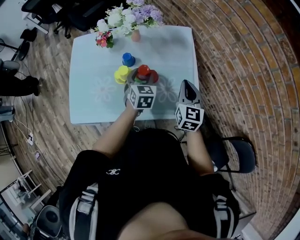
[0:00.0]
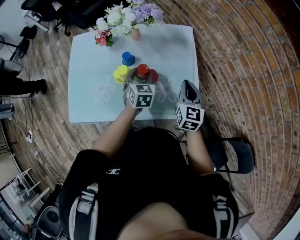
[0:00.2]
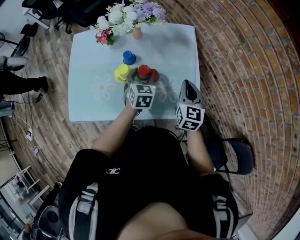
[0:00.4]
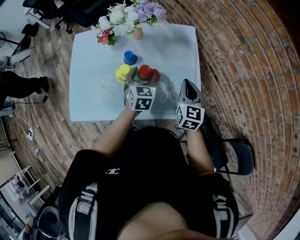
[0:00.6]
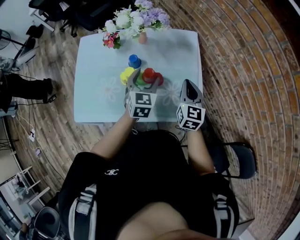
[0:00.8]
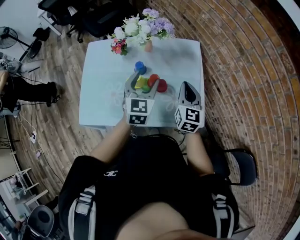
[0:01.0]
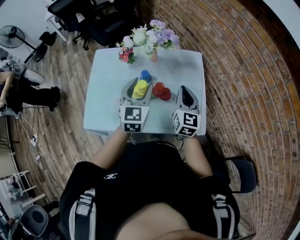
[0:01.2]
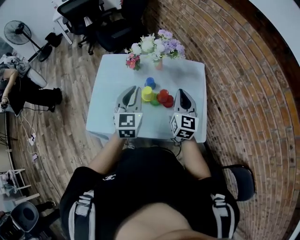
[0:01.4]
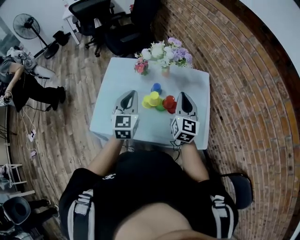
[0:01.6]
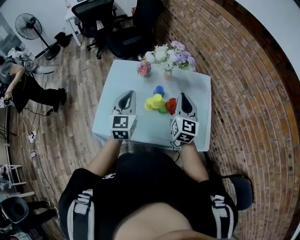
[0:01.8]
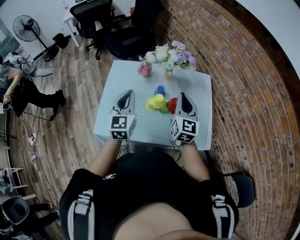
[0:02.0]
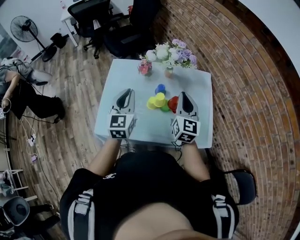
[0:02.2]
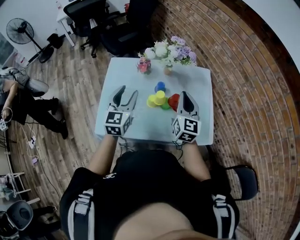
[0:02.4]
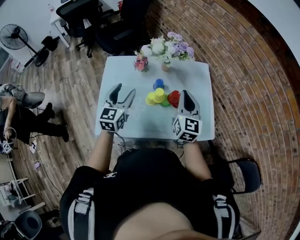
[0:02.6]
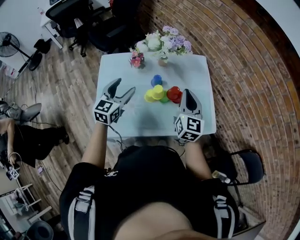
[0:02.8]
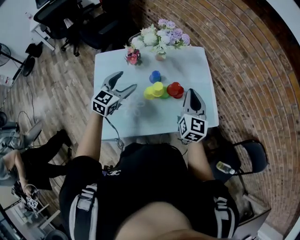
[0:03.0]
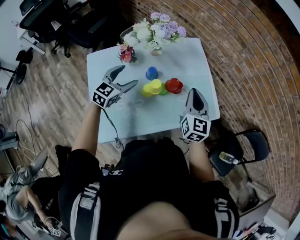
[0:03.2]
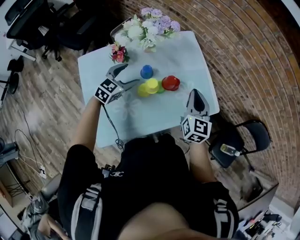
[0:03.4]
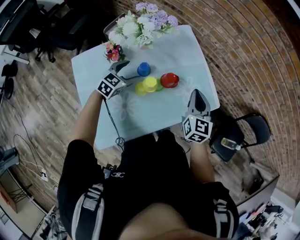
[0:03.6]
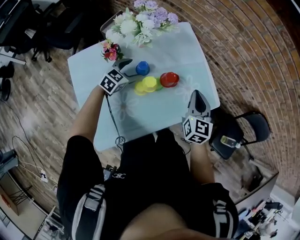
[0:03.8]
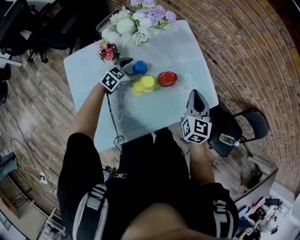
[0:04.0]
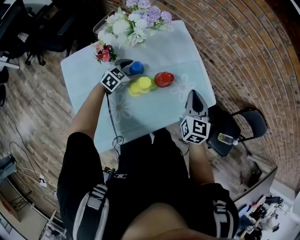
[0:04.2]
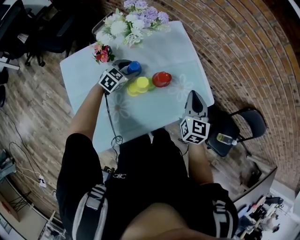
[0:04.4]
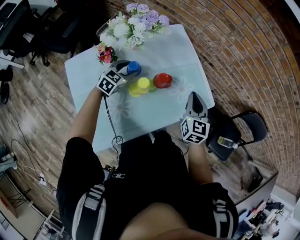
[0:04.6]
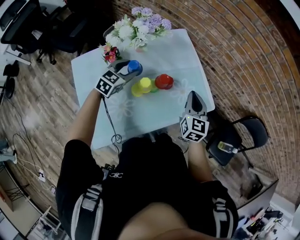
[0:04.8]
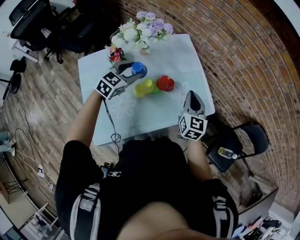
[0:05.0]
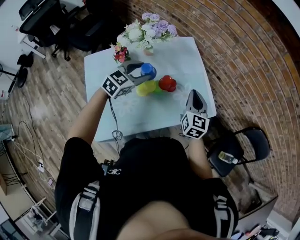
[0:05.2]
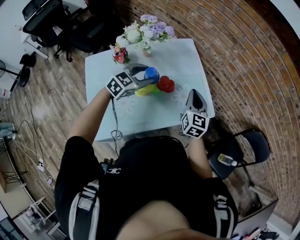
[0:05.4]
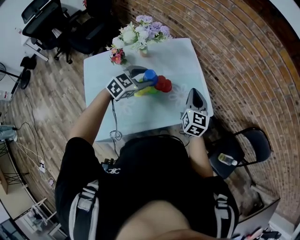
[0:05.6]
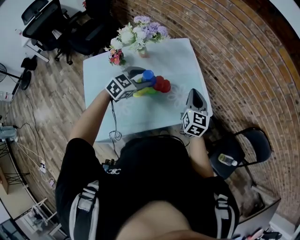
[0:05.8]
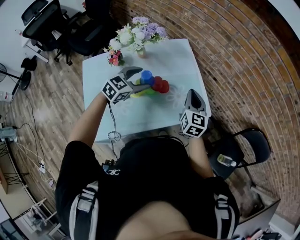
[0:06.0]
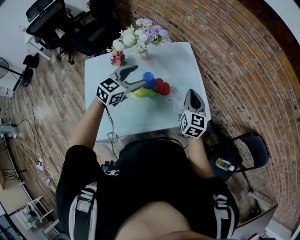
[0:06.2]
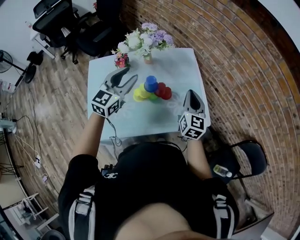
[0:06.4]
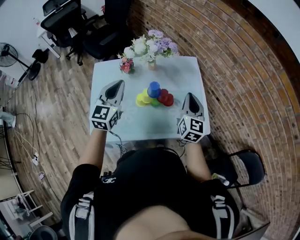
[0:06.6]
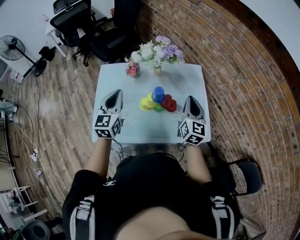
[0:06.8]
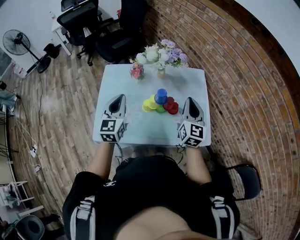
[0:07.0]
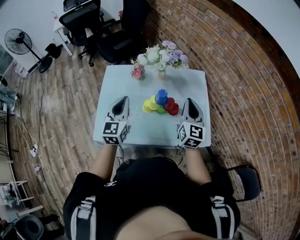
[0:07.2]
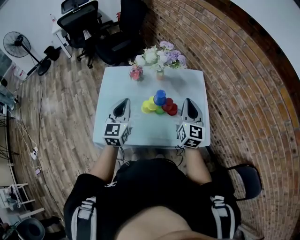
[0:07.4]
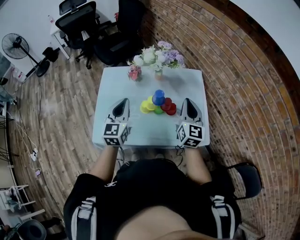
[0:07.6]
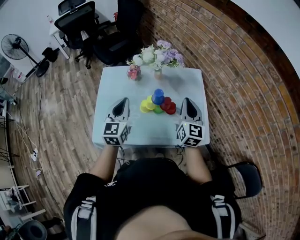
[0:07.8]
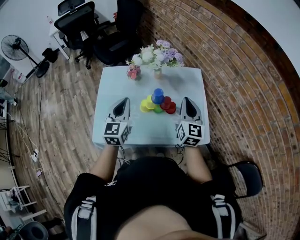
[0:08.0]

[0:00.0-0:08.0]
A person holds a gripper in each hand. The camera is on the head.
0:00.0 to 0:01.6: The left gripper heads upward, to the left and backward, covering roughly 25 cm, swivels roughly 30 degrees, and closes, while the right gripper travels to the left and upward by roughly 20 cm.
0:01.6 to 0:03.2: The right gripper shifts by about 5 cm, and turns by approximately 20 degrees. Meanwhile the left gripper shifts by roughly 15 cm, changes its angle by approximately 50 degrees, and opens its fingers.
0:03.2 to 0:04.8: The right gripper is displaced to the right by roughly 5 cm; the left gripper travels forward by roughly 10 cm, and moves roughly 15 cm downward and comes back.
0:04.8 to 0:06.4: The right gripper ends up about 5 cm from where it was, while the left gripper goes about 20 cm upward and backward, and changes its angle by about 30 degrees.
0:06.4 to 0:08.0: The right gripper travels to the left by approximately 5 cm. Meanwhile the left gripper heads backward and to the left, covering approximately 10 cm, turns by approximately 30 degrees, and closes up.

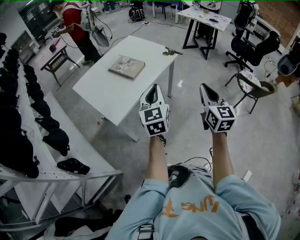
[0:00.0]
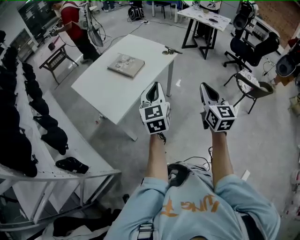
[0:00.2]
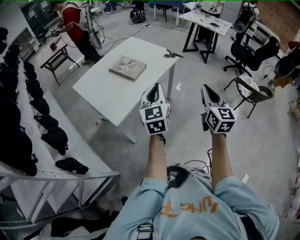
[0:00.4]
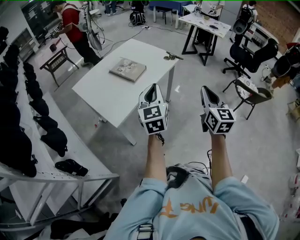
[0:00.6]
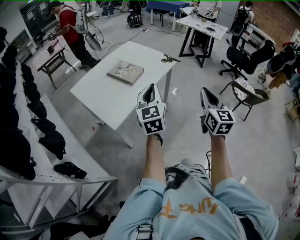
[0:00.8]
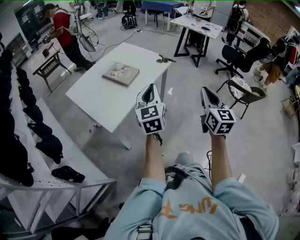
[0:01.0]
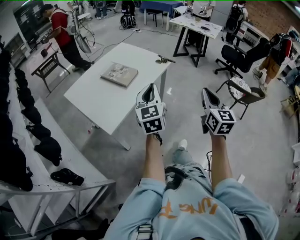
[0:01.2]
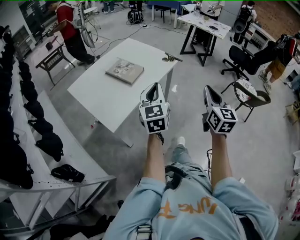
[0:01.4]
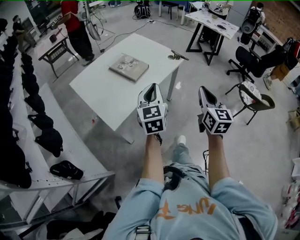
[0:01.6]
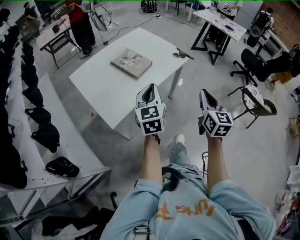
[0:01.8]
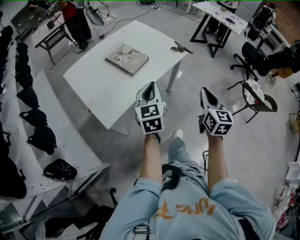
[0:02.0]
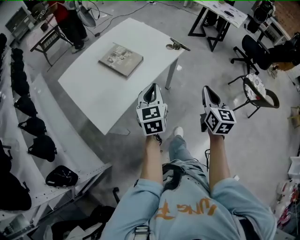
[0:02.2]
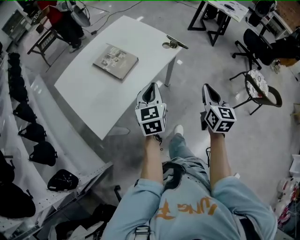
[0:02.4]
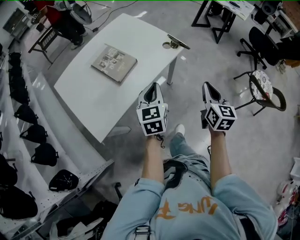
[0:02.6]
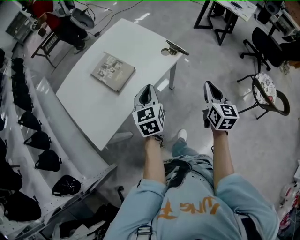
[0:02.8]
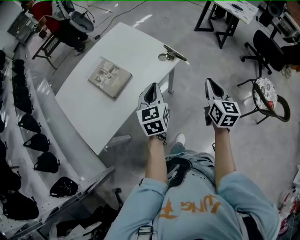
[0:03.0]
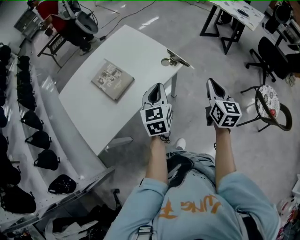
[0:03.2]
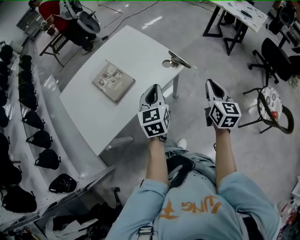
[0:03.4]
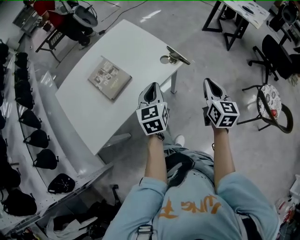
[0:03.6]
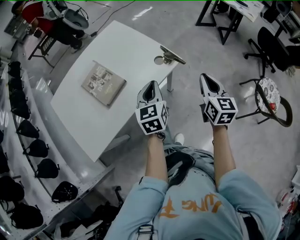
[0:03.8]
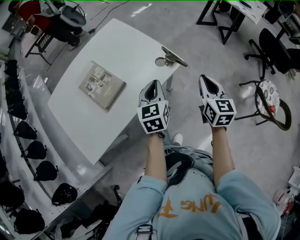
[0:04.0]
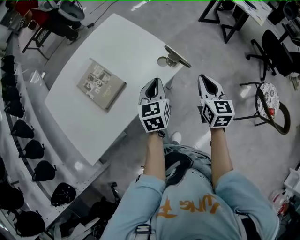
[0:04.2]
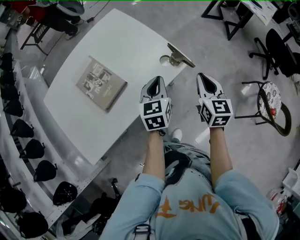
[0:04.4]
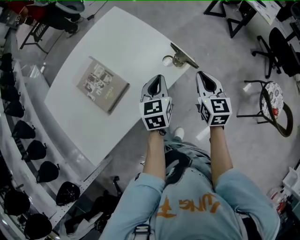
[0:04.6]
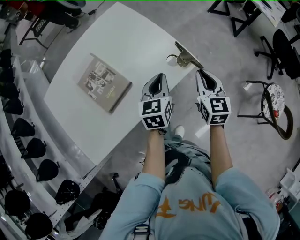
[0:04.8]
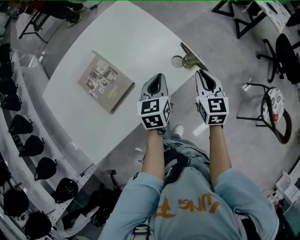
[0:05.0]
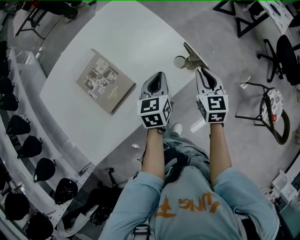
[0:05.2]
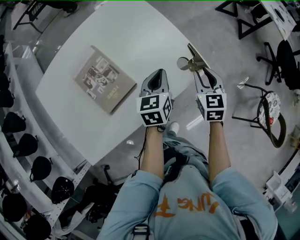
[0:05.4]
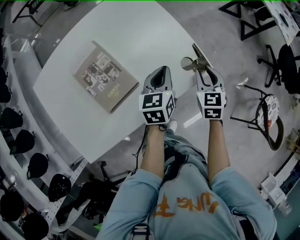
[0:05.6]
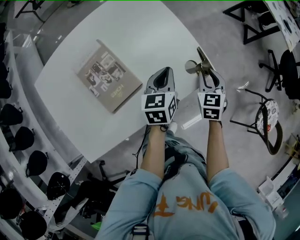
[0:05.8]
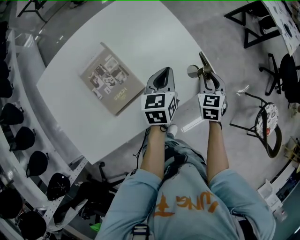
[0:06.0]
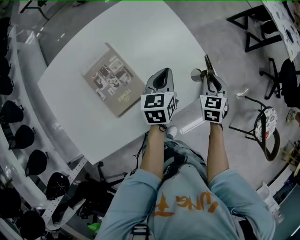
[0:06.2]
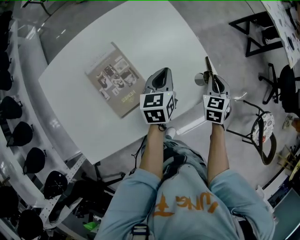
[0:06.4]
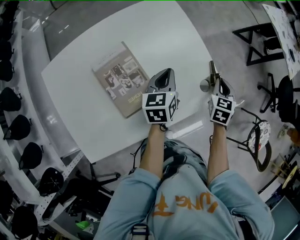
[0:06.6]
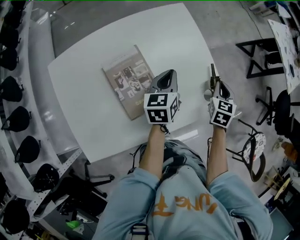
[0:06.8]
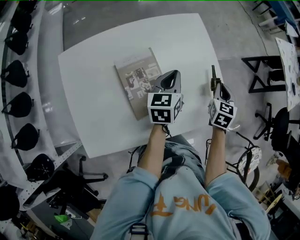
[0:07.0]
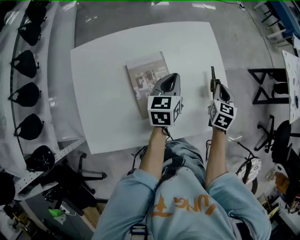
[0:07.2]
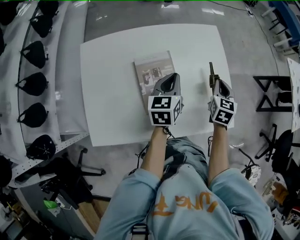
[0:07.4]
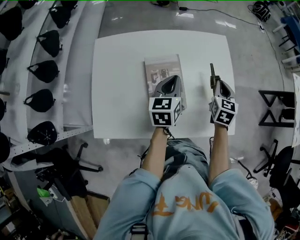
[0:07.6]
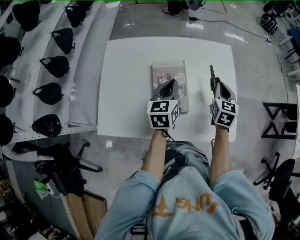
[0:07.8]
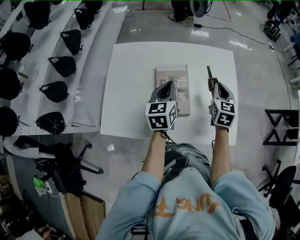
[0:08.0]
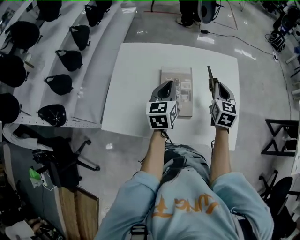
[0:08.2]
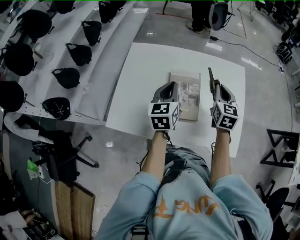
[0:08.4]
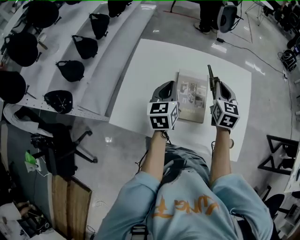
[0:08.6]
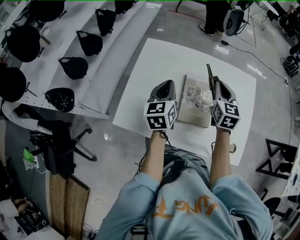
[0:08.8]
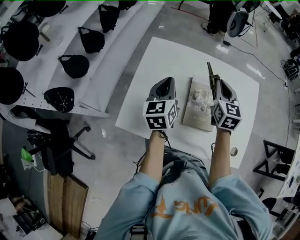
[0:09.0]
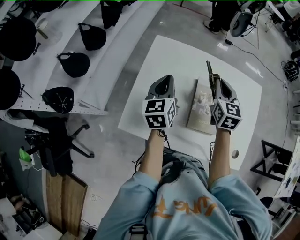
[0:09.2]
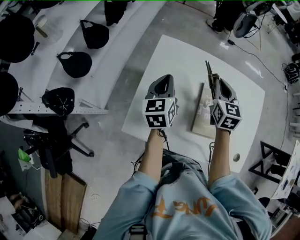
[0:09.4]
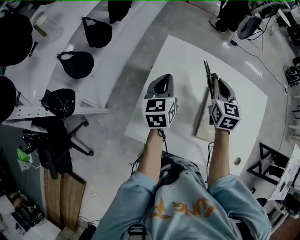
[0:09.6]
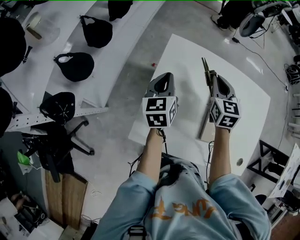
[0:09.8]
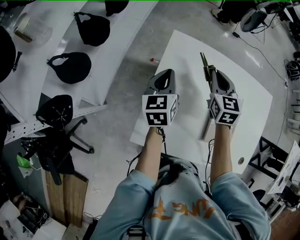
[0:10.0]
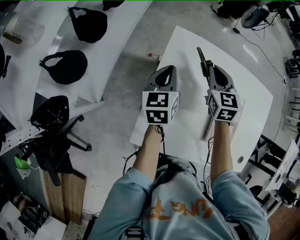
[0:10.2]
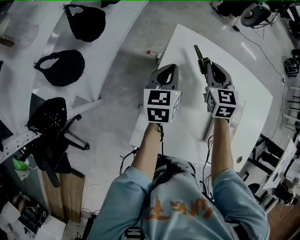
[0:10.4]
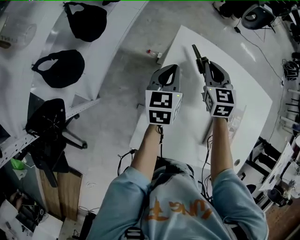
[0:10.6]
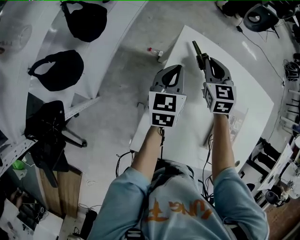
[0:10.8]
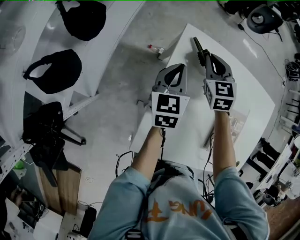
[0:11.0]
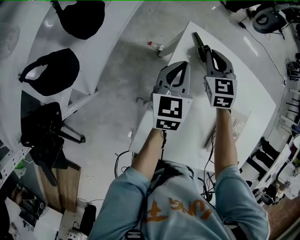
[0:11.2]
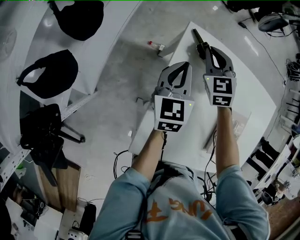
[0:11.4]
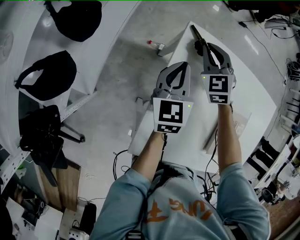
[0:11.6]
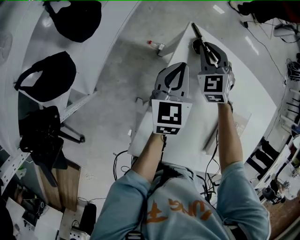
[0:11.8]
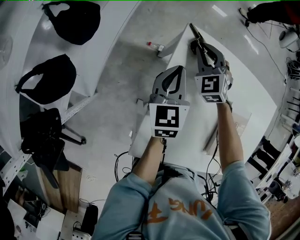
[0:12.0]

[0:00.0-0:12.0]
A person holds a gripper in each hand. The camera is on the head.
0:00.0 to 0:01.6: The two grippers go some 5 cm forward.
0:01.6 to 0:03.0: The right gripper travels forward and to the right by approximately 30 cm; the left gripper travels forward, to the right and downward by roughly 30 cm.
0:03.0 to 0:04.4: The grippers both shift forward and downward by about 15 cm.
0:04.4 to 0:06.0: The left gripper goes roughly 10 cm forward and to the left, while the right gripper goes some 15 cm downward, forward and to the left, rotates some 30 degrees, and opens.
0:06.0 to 0:07.6: The left gripper changes place by some 20 cm, and changes its angle by some 30 degrees, while the right gripper moves roughly 25 cm, turns by some 30 degrees, and closes.
0:07.6 to 0:09.0: The right gripper changes place by some 25 cm, and changes its angle by some 30 degrees. The left gripper changes place by approximately 25 cm, and turns by about 30 degrees.
0:09.0 to 0:10.4: The two grippers go some 25 cm to the left, forward and downward.
0:10.4 to 0:12.0: The right gripper heads forward, to the left and downward, covering roughly 15 cm, and rotates approximately 30 degrees.

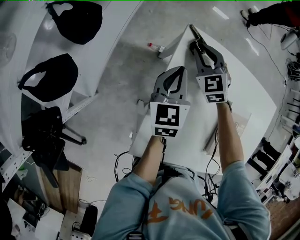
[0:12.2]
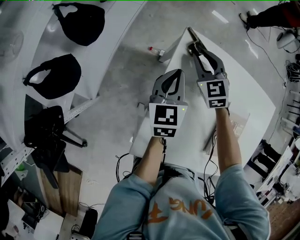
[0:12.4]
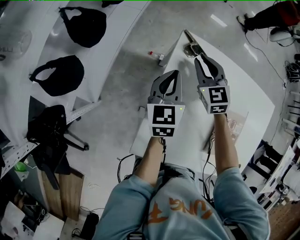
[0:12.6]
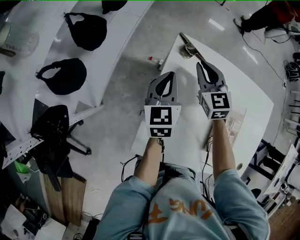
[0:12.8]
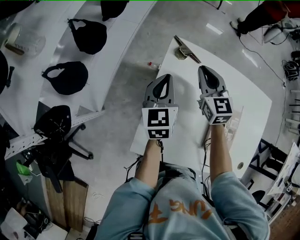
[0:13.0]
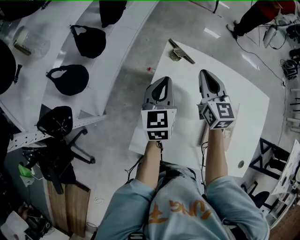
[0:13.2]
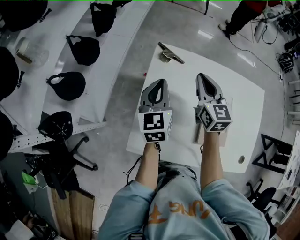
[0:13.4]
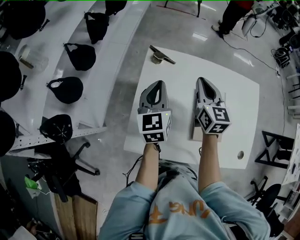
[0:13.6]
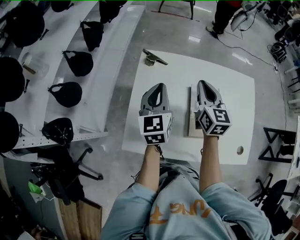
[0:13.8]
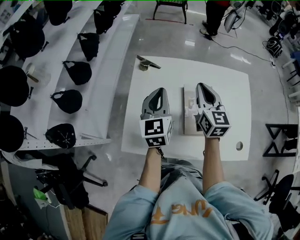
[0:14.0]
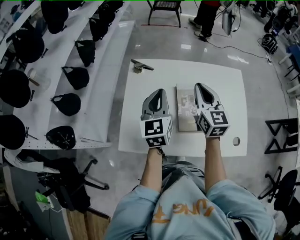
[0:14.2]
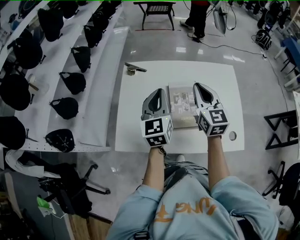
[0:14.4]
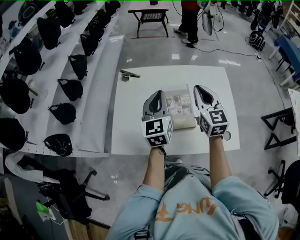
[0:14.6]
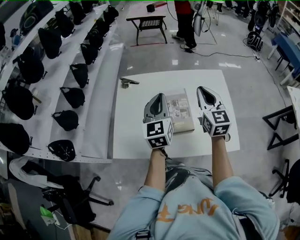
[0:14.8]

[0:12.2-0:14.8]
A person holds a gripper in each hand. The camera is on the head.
0:12.2 to 0:13.4: The left gripper is displaced upward and backward by roughly 15 cm. The right gripper travels upward, backward and to the right by about 25 cm, and changes its angle by about 40 degrees.
0:13.4 to 0:14.8: The right gripper goes roughly 35 cm to the right and backward. The left gripper goes roughly 30 cm to the right, backward and upward.
